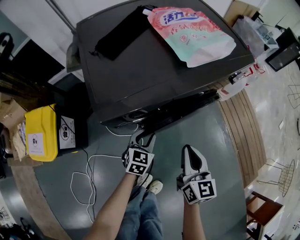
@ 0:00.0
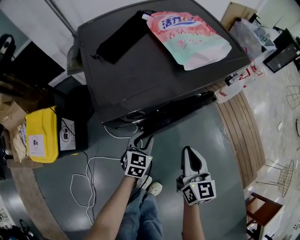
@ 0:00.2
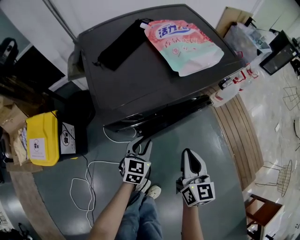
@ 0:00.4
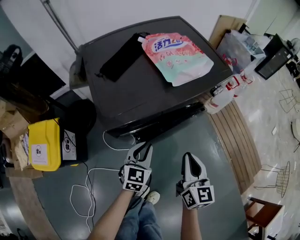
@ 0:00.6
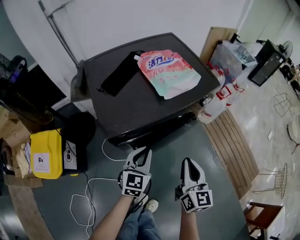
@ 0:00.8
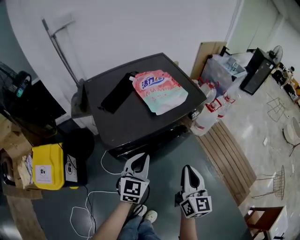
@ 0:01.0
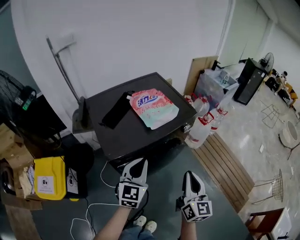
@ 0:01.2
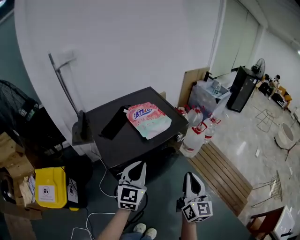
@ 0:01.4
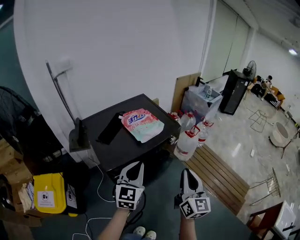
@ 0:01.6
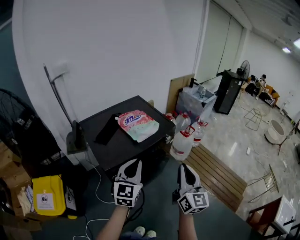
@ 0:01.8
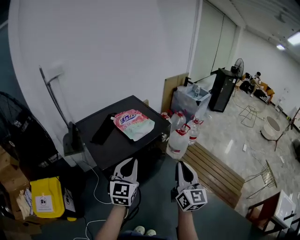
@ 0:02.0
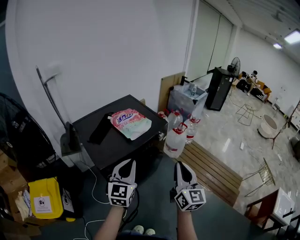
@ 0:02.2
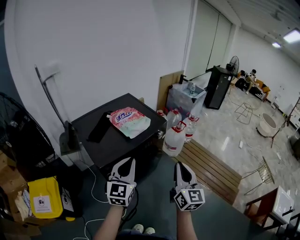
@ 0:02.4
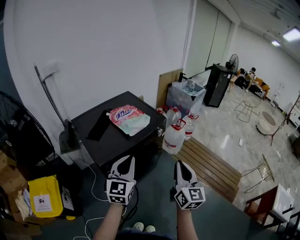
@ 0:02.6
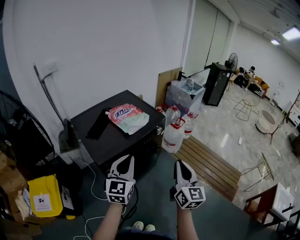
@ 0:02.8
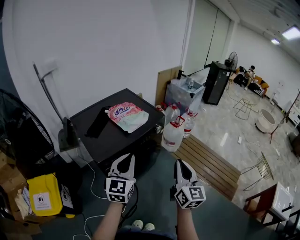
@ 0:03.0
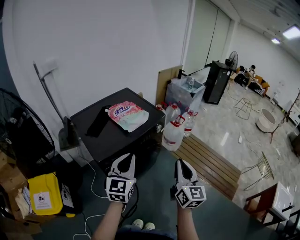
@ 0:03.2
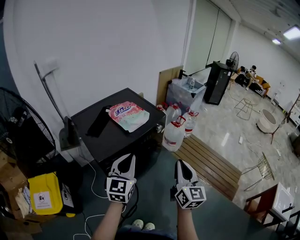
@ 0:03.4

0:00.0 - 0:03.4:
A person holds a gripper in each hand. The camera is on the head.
0:00.0 - 0:01.6: Both grippers travel together upward, some 40 cm. The right gripper changes its angle by roughly 30 degrees. Meanwhile the left gripper tilts its fingers some 30 degrees upward, and closes its fingers.
0:01.6 - 0:03.4: The right gripper changes place by about 5 cm.

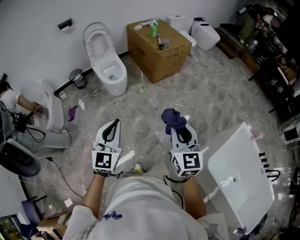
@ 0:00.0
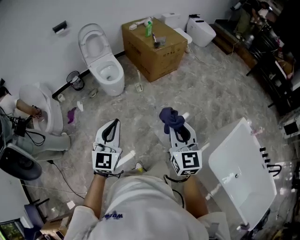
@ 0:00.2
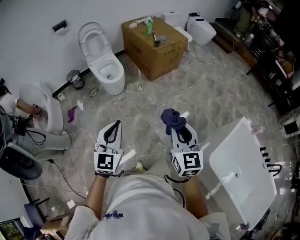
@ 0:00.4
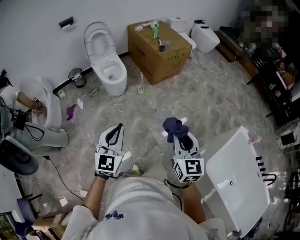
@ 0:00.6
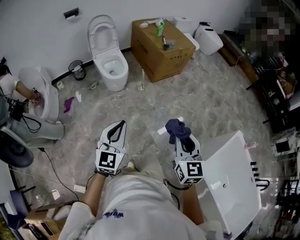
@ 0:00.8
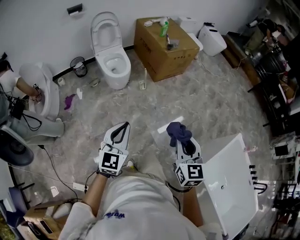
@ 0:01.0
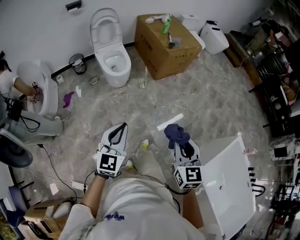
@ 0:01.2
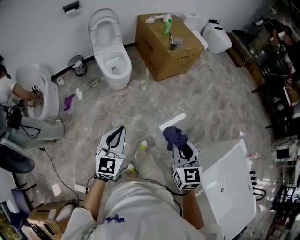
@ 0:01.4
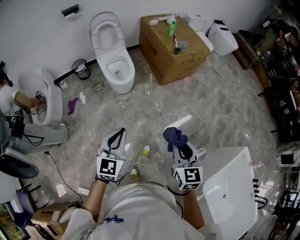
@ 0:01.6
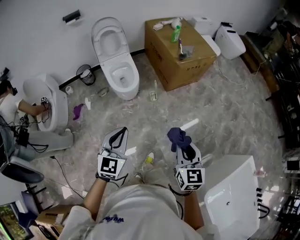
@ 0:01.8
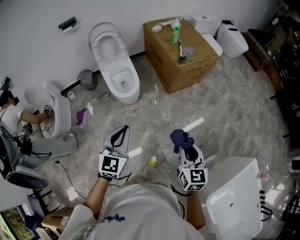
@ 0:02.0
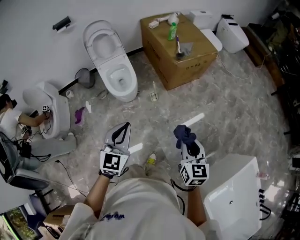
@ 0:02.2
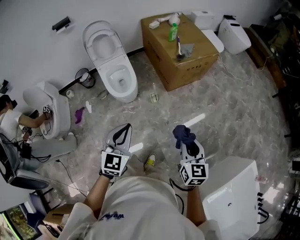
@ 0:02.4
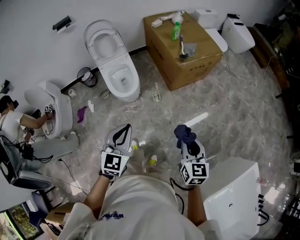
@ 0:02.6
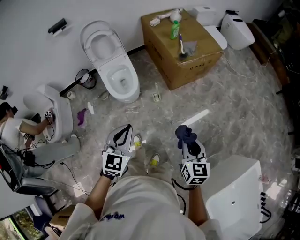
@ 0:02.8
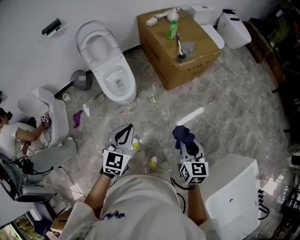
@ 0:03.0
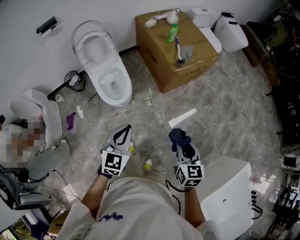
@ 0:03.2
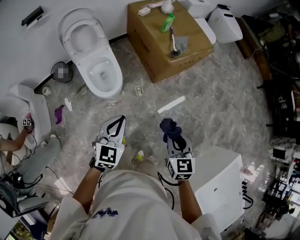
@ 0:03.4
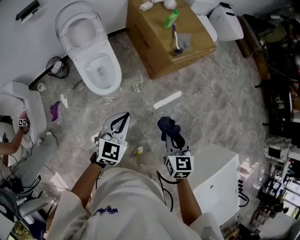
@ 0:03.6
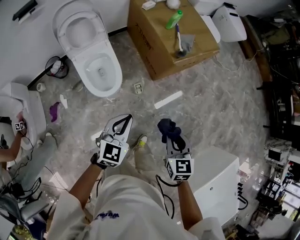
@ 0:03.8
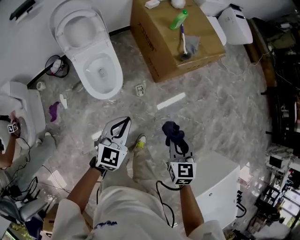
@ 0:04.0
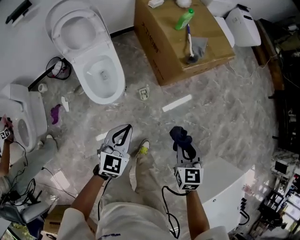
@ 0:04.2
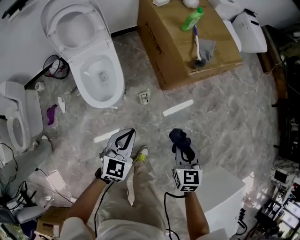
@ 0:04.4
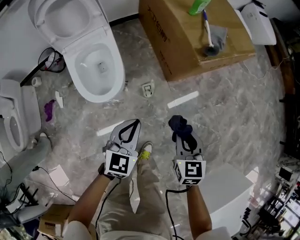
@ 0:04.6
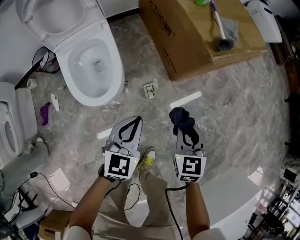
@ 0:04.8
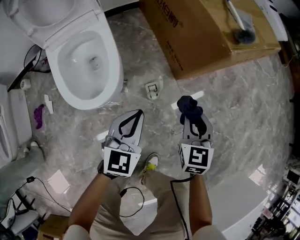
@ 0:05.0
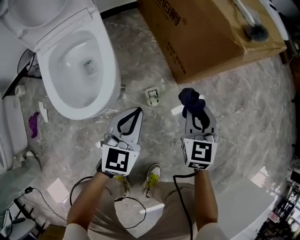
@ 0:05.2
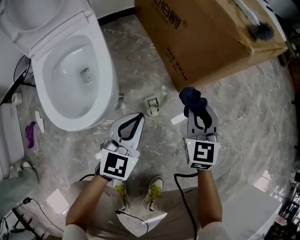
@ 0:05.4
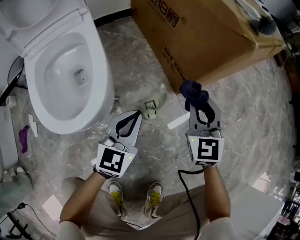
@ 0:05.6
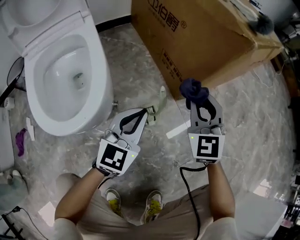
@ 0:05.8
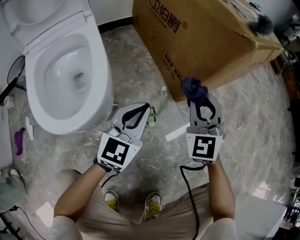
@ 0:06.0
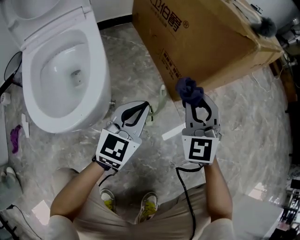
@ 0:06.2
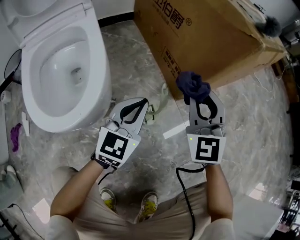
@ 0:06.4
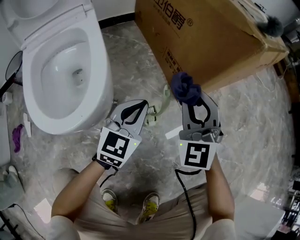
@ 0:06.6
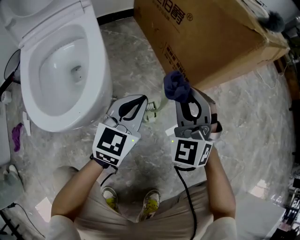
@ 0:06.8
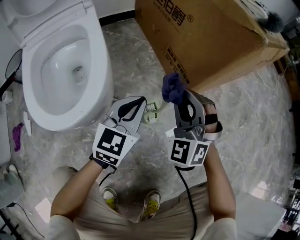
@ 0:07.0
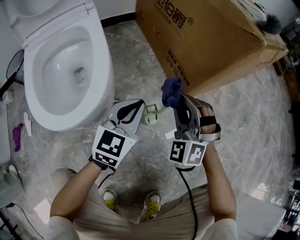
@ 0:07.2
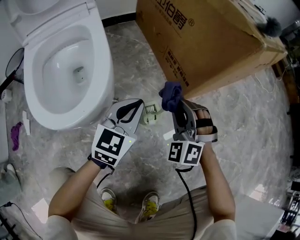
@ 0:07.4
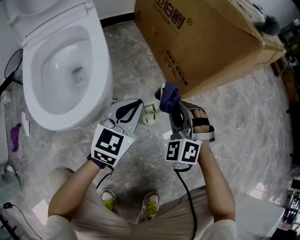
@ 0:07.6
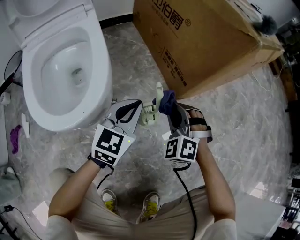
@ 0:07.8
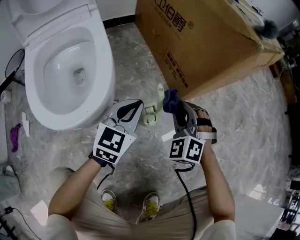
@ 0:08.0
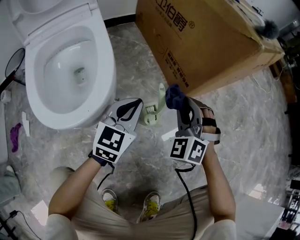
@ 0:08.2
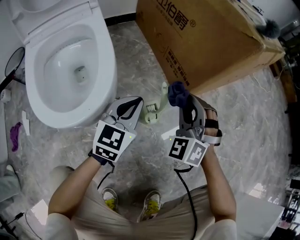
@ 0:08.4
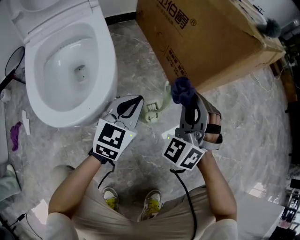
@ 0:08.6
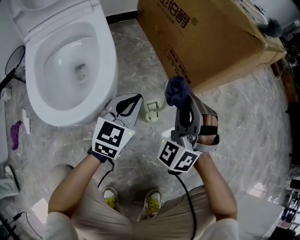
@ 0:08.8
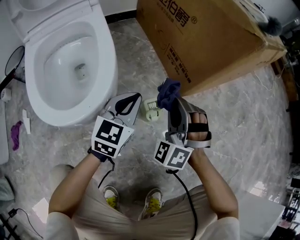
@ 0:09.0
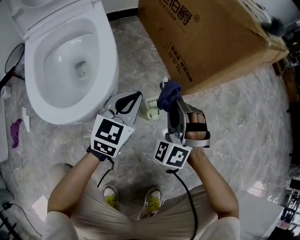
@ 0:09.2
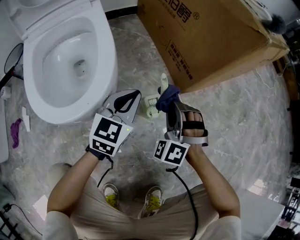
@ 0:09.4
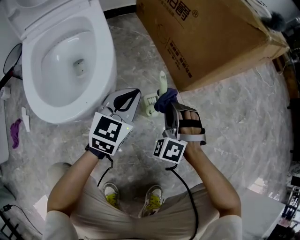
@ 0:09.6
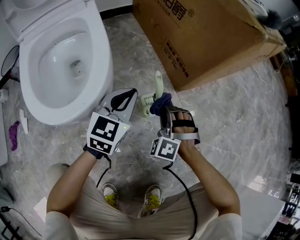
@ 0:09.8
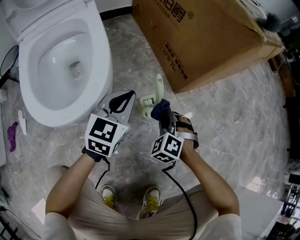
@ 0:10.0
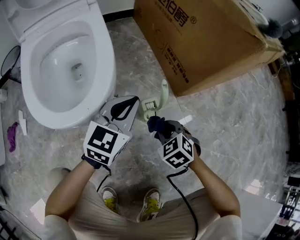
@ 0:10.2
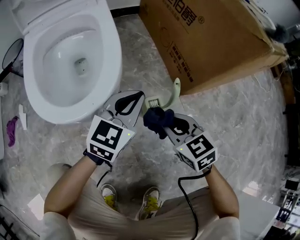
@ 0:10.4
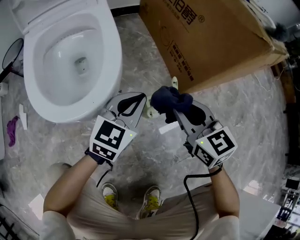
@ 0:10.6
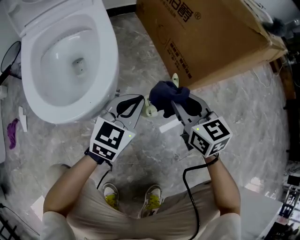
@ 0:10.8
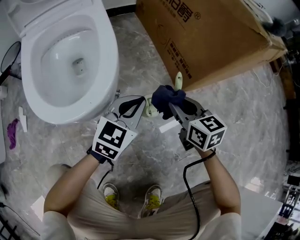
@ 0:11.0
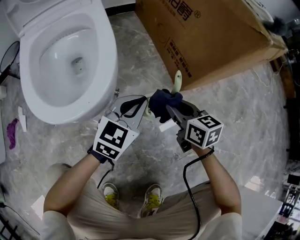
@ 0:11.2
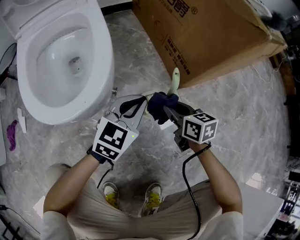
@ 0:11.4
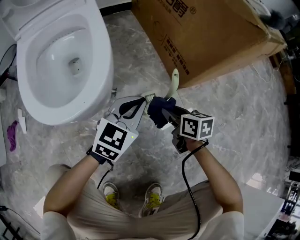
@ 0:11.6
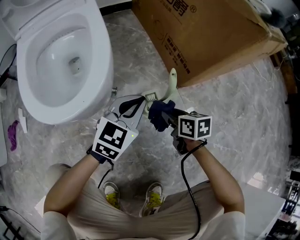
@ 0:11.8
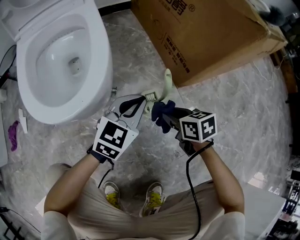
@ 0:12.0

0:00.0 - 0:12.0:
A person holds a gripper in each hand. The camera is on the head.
0:00.0 - 0:01.6: The right gripper travels forward and downward by about 15 cm. The left gripper moves forward, some 15 cm.
0:01.6 - 0:03.0: The grippers both shift forward by some 25 cm.
0:03.0 - 0:04.4: Both grippers move downward and forward, roughly 30 cm.
0:04.4 - 0:06.0: The grippers both shift downward and forward by about 40 cm. The left gripper swivels approximately 20 degrees, while the right gripper changes its angle by approximately 50 degrees.
0:06.0 - 0:07.6: The right gripper goes about 10 cm downward and to the left, and swivels roughly 40 degrees.
0:07.6 - 0:09.0: The right gripper reaches some 10 cm upward, then returns.
0:09.0 - 0:10.4: The right gripper shifts roughly 5 cm backward, reaches about 15 cm downward, then returns, and changes its angle by some 70 degrees.
0:10.4 - 0:12.0: The left gripper shifts by about 5 cm, while the right gripper heads downward, covering approximately 5 cm, and changes its angle by about 30 degrees.

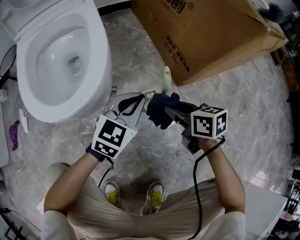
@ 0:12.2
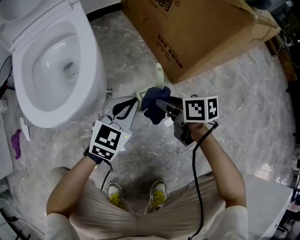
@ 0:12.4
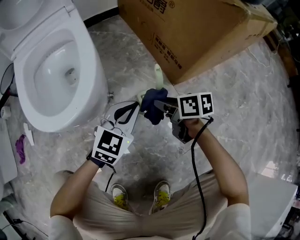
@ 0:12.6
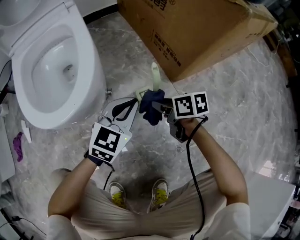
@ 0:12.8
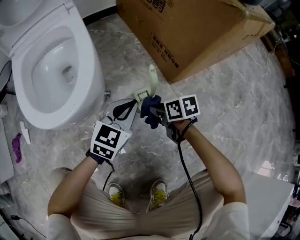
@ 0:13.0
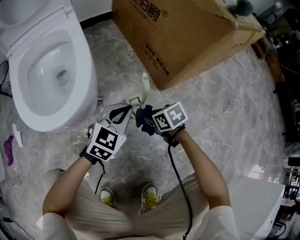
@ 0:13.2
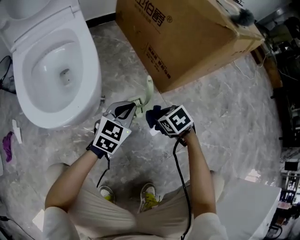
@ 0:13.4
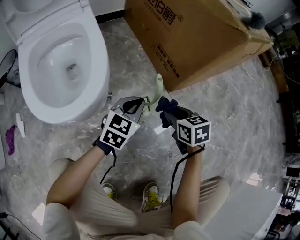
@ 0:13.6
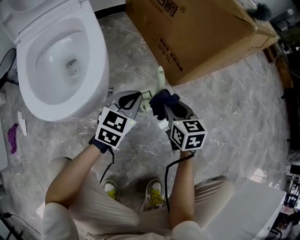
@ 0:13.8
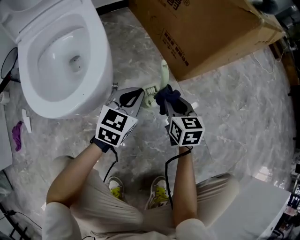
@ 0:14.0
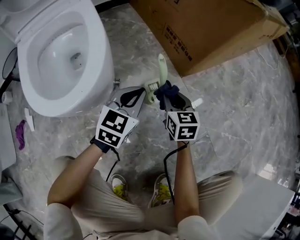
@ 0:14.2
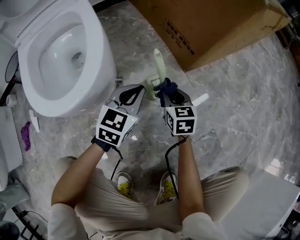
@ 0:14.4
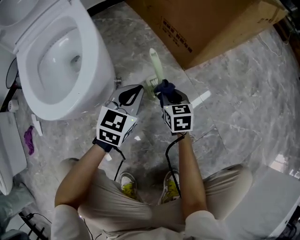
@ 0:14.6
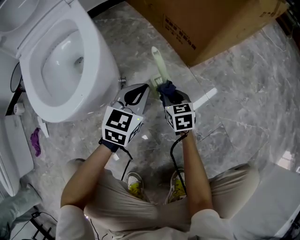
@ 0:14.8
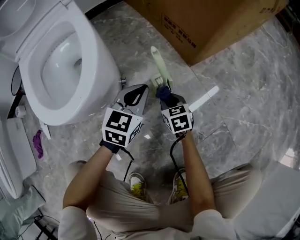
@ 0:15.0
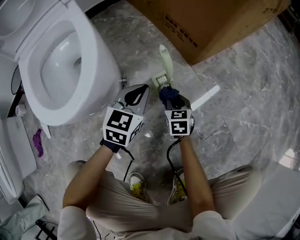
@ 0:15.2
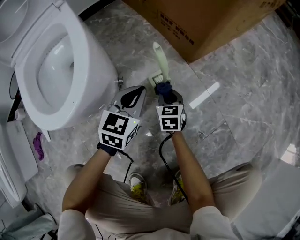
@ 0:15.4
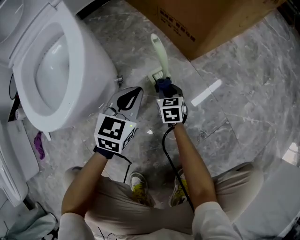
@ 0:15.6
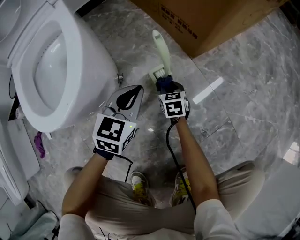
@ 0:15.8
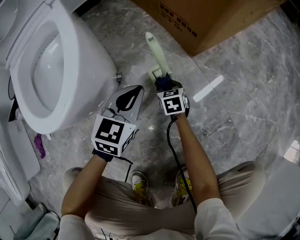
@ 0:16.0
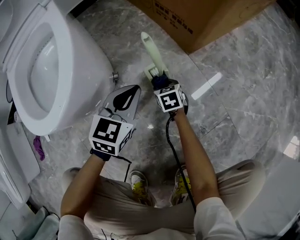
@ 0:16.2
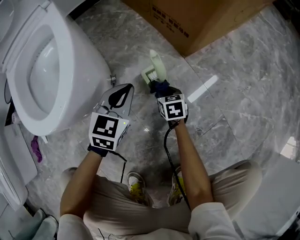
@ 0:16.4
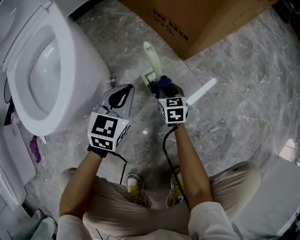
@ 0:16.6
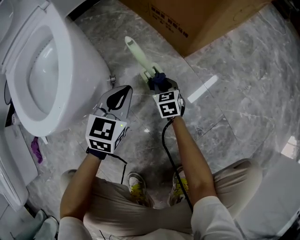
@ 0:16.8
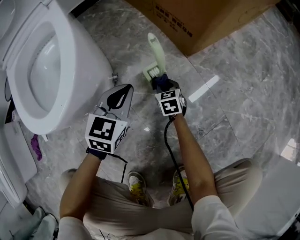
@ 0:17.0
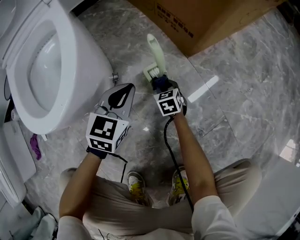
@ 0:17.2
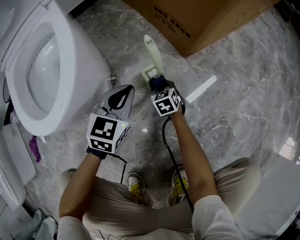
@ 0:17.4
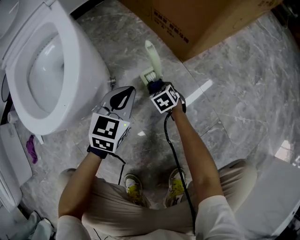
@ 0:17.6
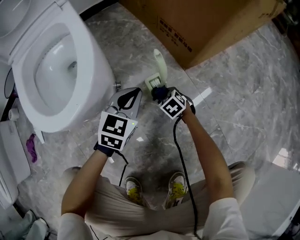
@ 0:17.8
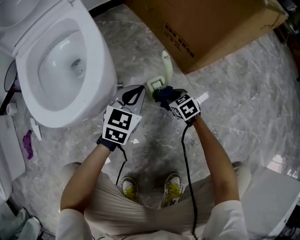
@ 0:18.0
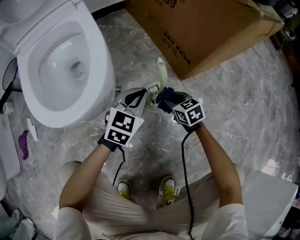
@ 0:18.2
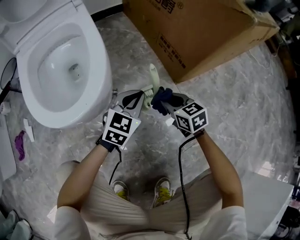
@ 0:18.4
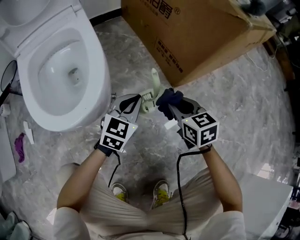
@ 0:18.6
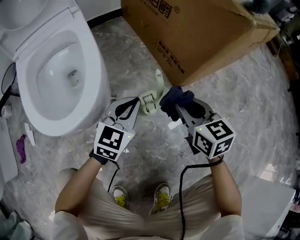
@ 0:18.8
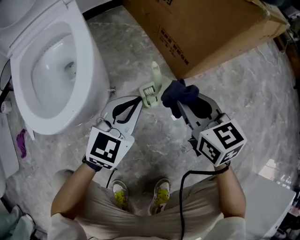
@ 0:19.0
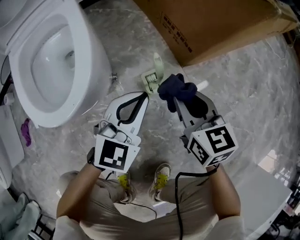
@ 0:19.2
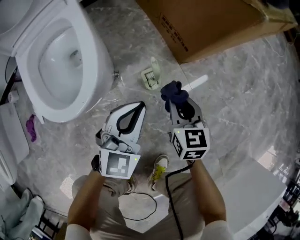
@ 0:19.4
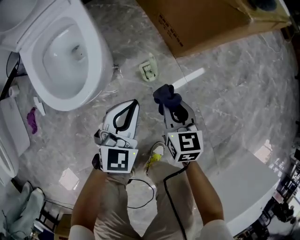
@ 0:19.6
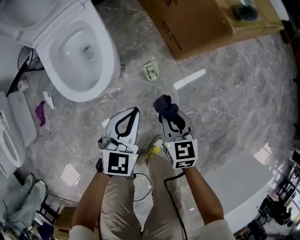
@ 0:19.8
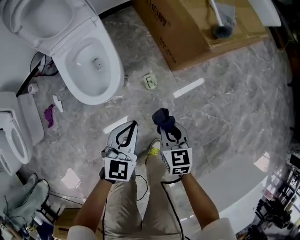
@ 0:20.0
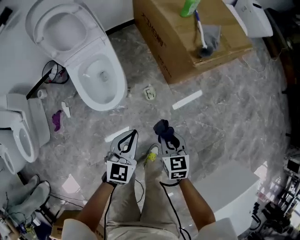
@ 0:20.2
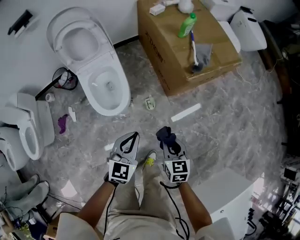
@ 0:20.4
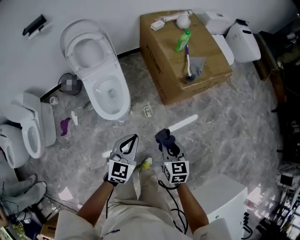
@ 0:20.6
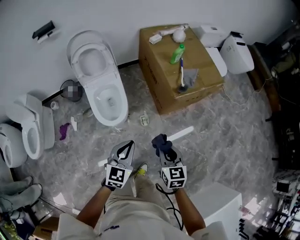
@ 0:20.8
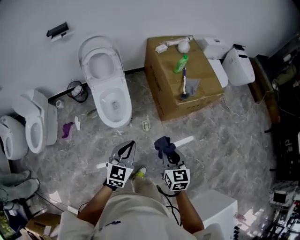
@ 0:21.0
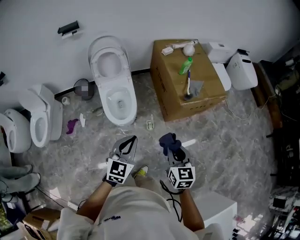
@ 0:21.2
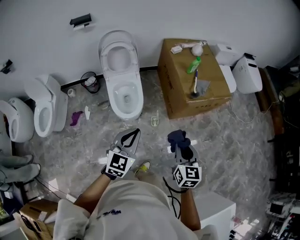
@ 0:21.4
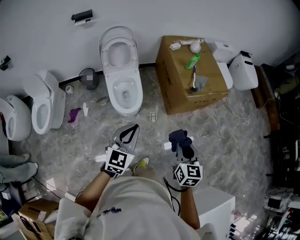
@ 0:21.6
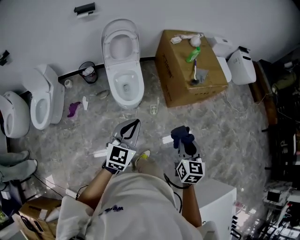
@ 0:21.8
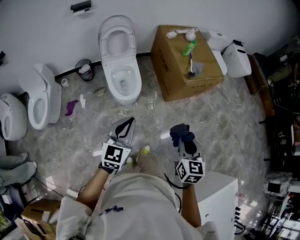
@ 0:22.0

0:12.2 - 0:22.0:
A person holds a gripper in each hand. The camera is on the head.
0:12.2 - 0:13.6: The right gripper reaches about 10 cm downward, then returns, and changes its angle by some 20 degrees.
0:13.6 - 0:15.0: The right gripper travels downward by approximately 15 cm.
0:15.0 - 0:16.4: The right gripper travels downward by roughly 5 cm.
0:16.4 - 0:17.8: The right gripper turns by roughly 40 degrees.
0:17.8 - 0:19.2: The left gripper shifts roughly 10 cm upward, while the right gripper travels upward by about 30 cm, and tips its fingers upward by roughly 30 degrees.
0:19.2 - 0:20.6: The two grippers go some 50 cm upward.
0:20.6 - 0:22.0: The left gripper shifts about 30 cm backward, upward and to the left, while the right gripper goes some 30 cm upward and backward.
